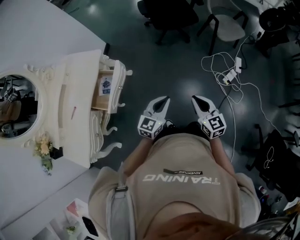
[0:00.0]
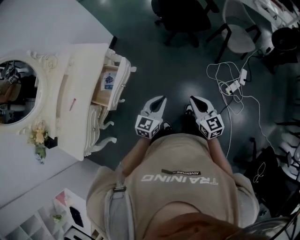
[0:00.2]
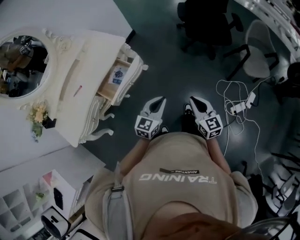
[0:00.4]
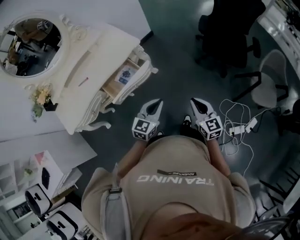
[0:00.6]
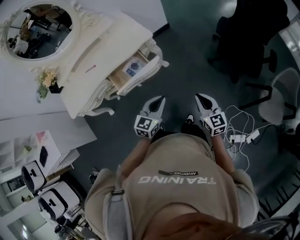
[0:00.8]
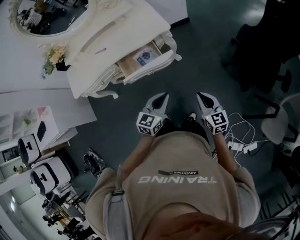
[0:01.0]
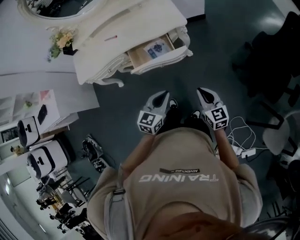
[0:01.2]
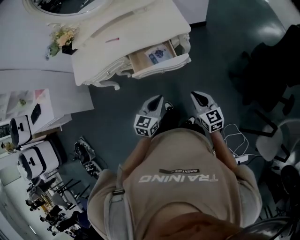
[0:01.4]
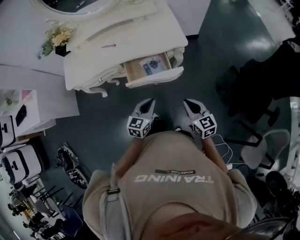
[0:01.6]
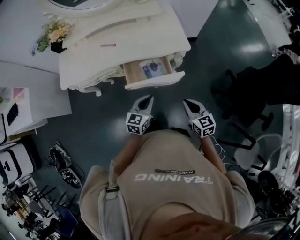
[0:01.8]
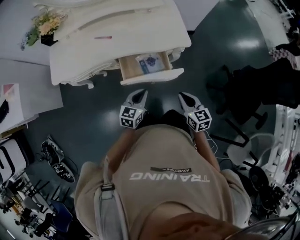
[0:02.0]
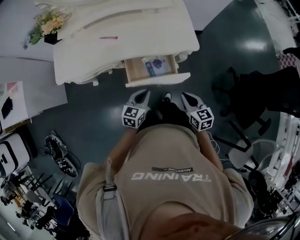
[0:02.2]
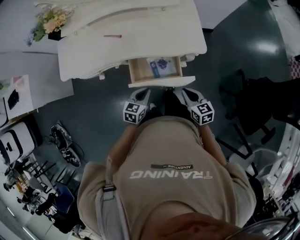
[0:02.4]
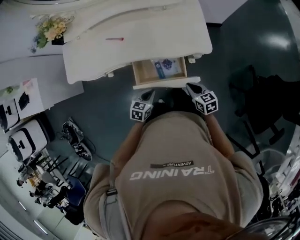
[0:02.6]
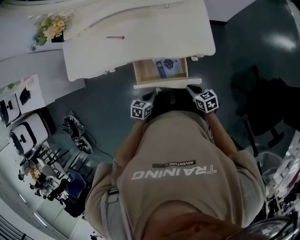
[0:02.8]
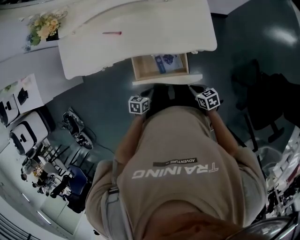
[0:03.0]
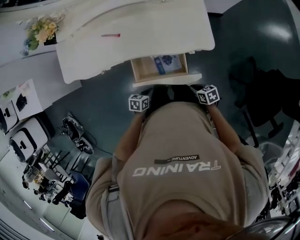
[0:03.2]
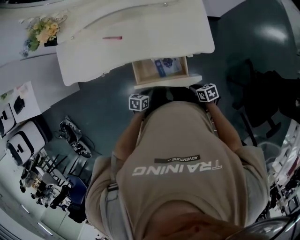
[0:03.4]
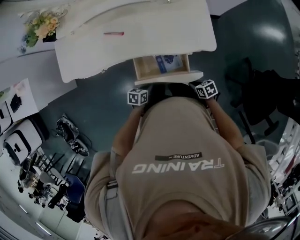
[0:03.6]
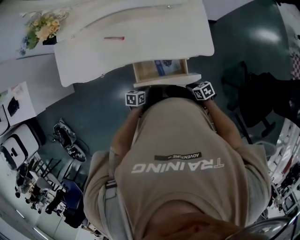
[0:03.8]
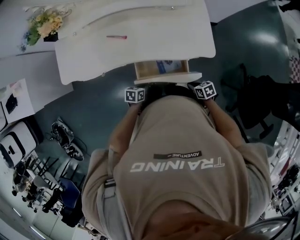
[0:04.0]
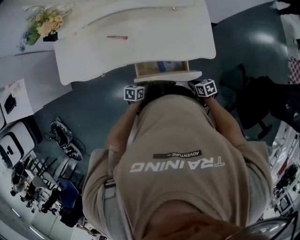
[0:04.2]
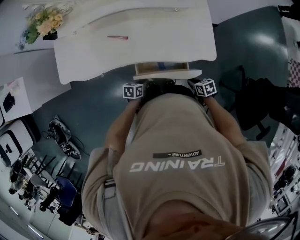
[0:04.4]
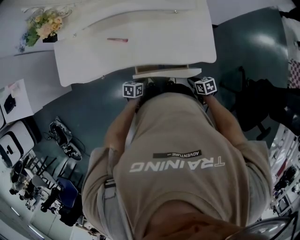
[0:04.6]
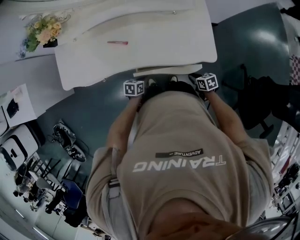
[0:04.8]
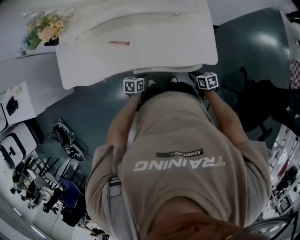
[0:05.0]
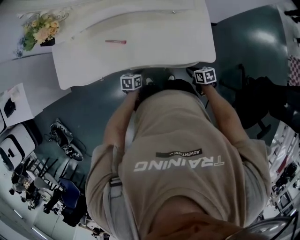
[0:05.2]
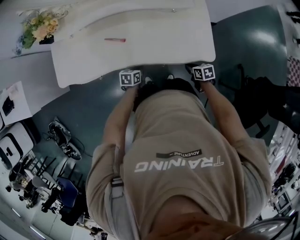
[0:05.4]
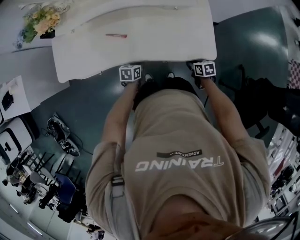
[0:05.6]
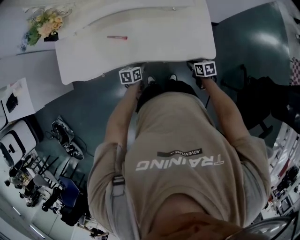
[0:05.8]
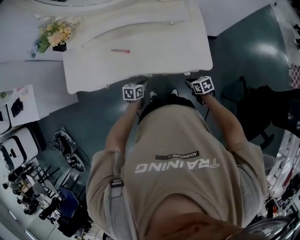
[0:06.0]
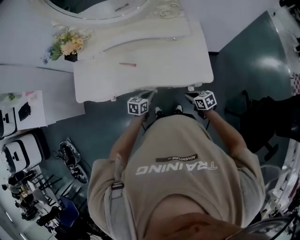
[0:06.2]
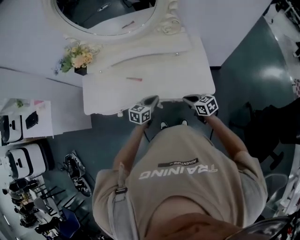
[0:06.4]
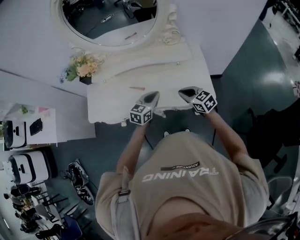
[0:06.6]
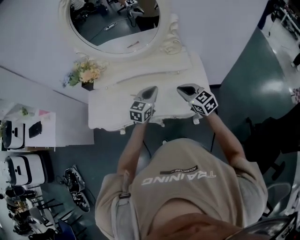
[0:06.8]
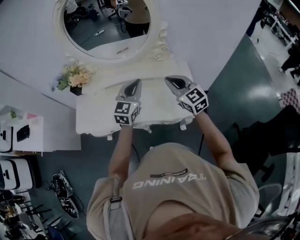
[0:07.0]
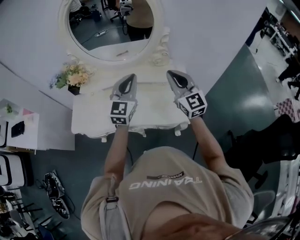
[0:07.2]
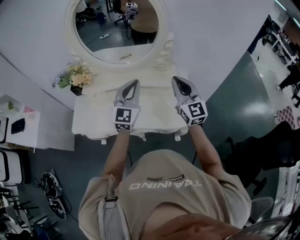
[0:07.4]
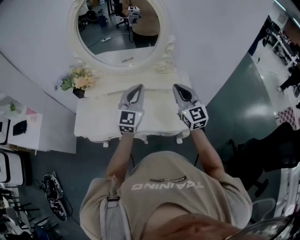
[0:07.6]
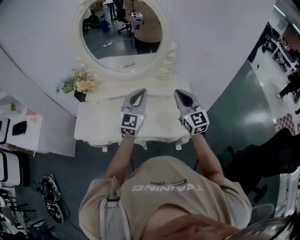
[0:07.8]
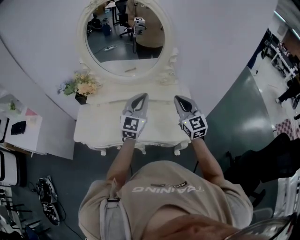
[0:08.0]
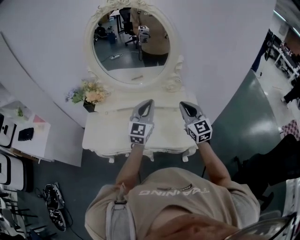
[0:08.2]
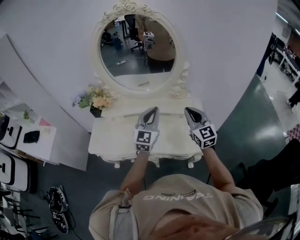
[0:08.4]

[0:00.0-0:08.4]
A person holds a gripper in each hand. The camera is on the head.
0:00.0 to 0:01.4: The right gripper shifts by approximately 35 cm, and rotates about 70 degrees, while the left gripper moves approximately 25 cm, and swivels some 70 degrees.
0:01.4 to 0:02.8: The grippers both shift forward and downward by about 30 cm. The right gripper swivels approximately 40 degrees, while the left gripper changes its angle by roughly 40 degrees.
0:02.8 to 0:04.2: The right gripper goes about 5 cm downward, while the left gripper changes place by some 10 cm.
0:04.2 to 0:05.6: The right gripper moves approximately 15 cm. Meanwhile the left gripper shifts by some 15 cm.
0:05.6 to 0:07.0: The grippers both shift upward by some 50 cm. The left gripper angles its fingers upward, by roughly 40 degrees; the right gripper tips its fingers upward by about 40 degrees.

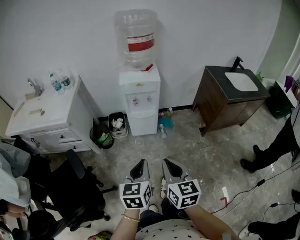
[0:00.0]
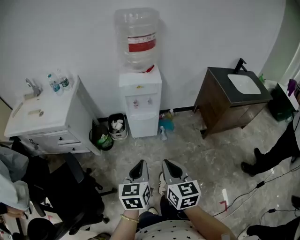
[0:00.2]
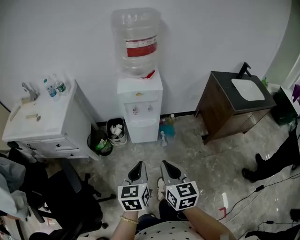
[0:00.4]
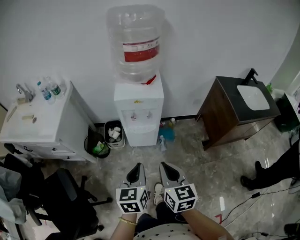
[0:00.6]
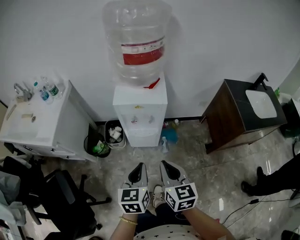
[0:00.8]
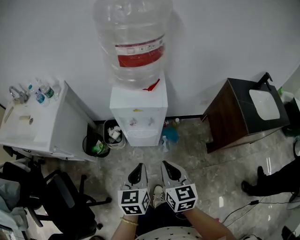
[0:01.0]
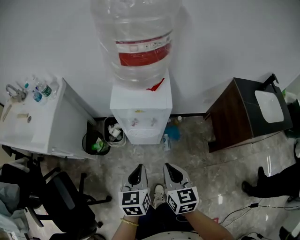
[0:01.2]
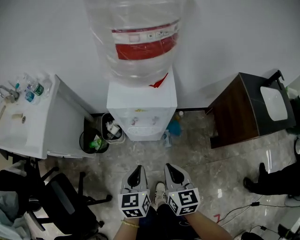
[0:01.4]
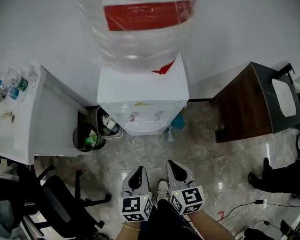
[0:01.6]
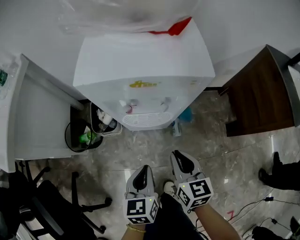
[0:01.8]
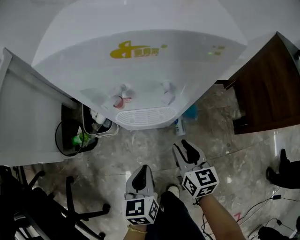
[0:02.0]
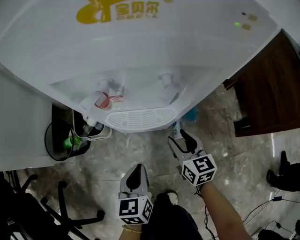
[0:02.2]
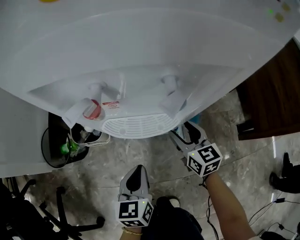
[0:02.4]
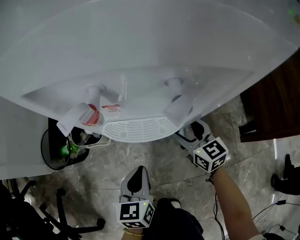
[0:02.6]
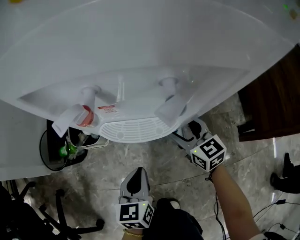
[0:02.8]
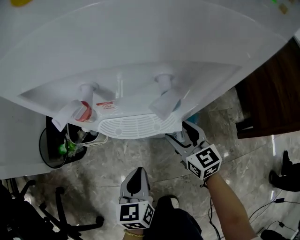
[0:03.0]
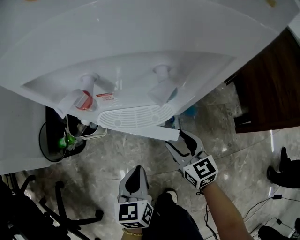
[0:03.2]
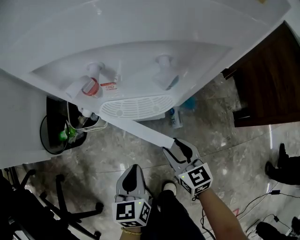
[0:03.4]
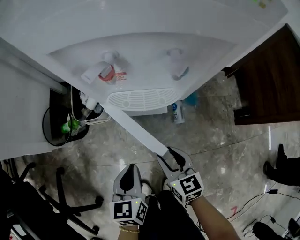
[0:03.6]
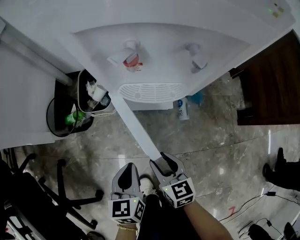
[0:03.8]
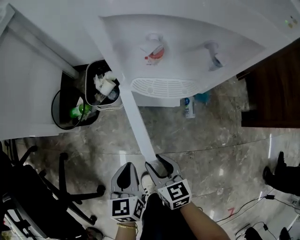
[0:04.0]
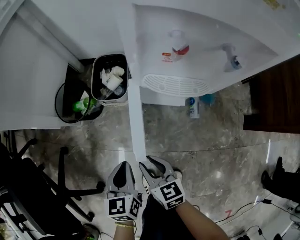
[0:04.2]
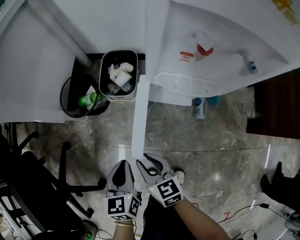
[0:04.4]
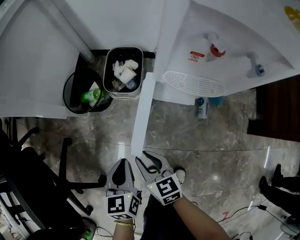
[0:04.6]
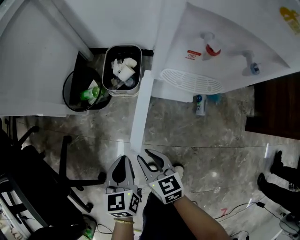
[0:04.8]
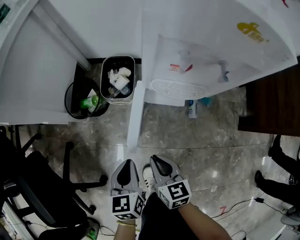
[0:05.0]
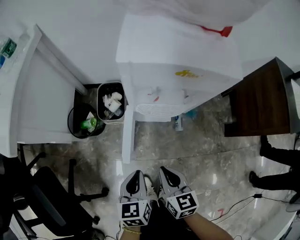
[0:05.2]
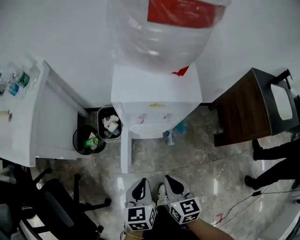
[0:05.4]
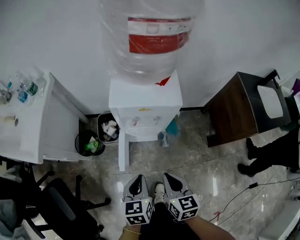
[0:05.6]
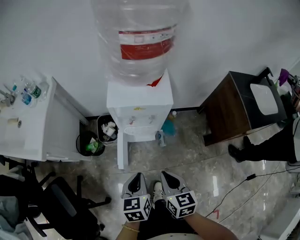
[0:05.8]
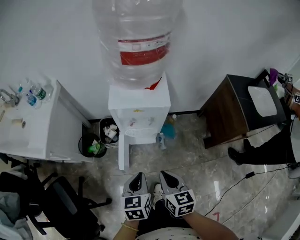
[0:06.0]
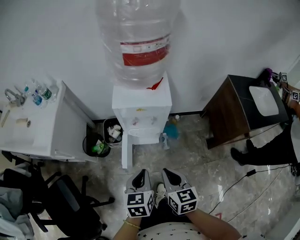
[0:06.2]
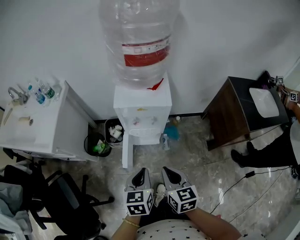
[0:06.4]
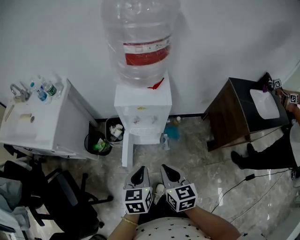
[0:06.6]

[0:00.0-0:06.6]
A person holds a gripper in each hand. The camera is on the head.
0:00.0 to 0:01.6: The grippers both shift forward and downward by some 40 cm.
0:01.6 to 0:03.2: Both grippers travel together downward, some 30 cm. The right gripper opens up.
0:03.2 to 0:05.0: The left gripper goes about 20 cm to the left and upward. Meanwhile the right gripper shifts approximately 25 cm to the left and backward, and closes.
0:05.0 to 0:06.6: The left gripper is displaced upward and to the right by roughly 40 cm. Meanwhile the right gripper goes approximately 40 cm upward.

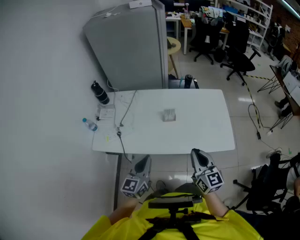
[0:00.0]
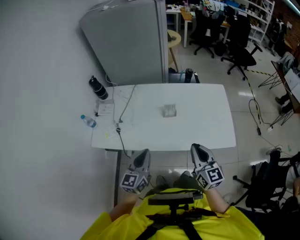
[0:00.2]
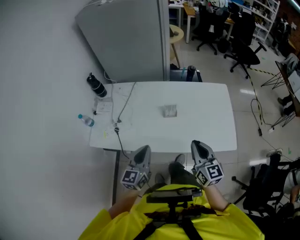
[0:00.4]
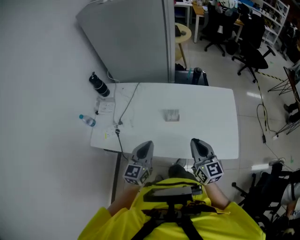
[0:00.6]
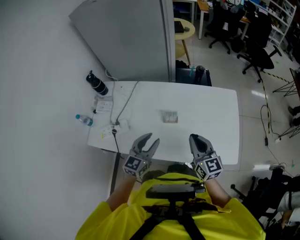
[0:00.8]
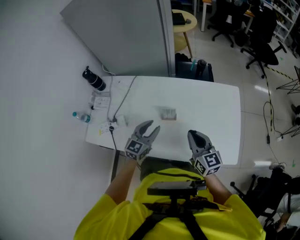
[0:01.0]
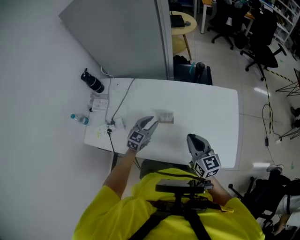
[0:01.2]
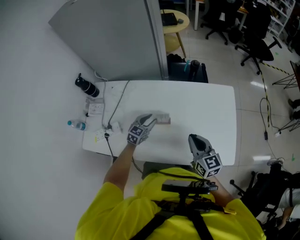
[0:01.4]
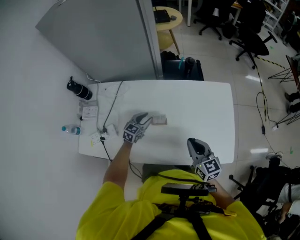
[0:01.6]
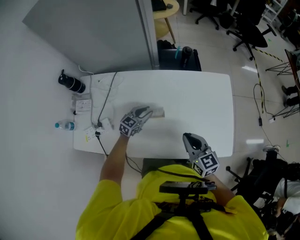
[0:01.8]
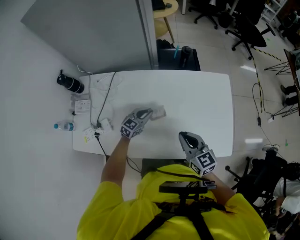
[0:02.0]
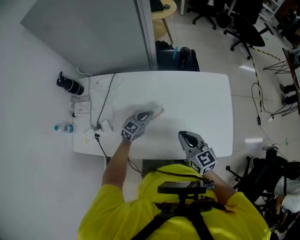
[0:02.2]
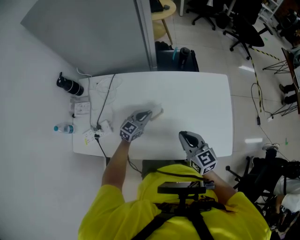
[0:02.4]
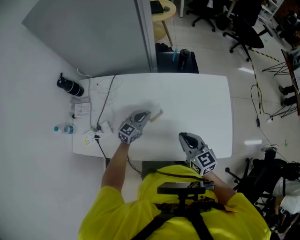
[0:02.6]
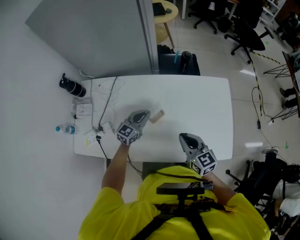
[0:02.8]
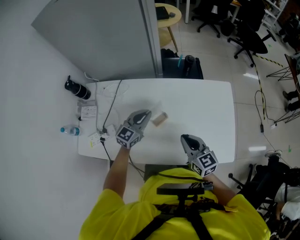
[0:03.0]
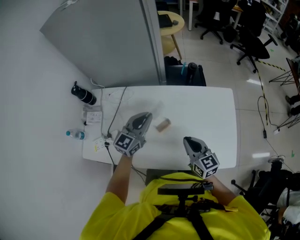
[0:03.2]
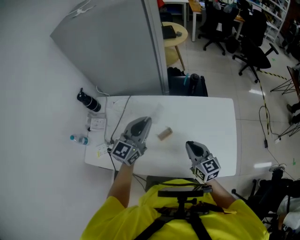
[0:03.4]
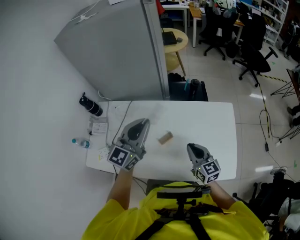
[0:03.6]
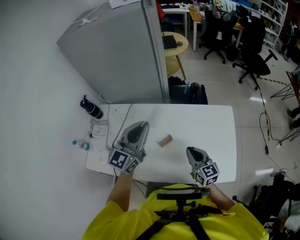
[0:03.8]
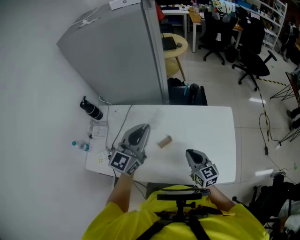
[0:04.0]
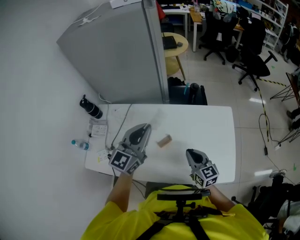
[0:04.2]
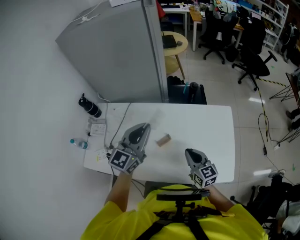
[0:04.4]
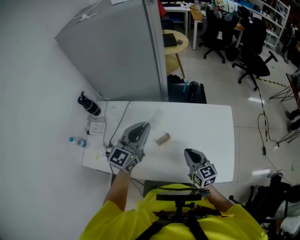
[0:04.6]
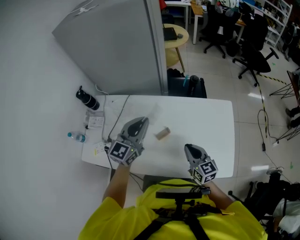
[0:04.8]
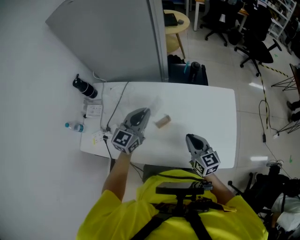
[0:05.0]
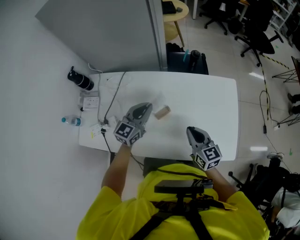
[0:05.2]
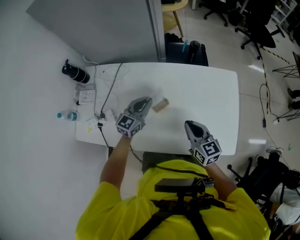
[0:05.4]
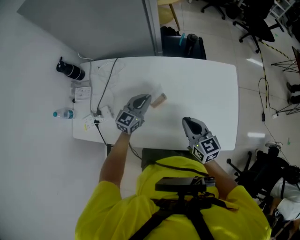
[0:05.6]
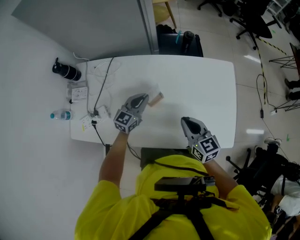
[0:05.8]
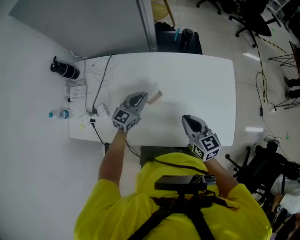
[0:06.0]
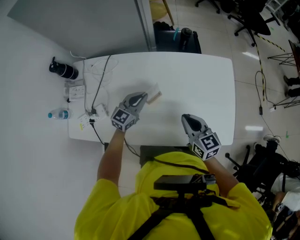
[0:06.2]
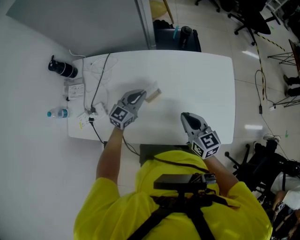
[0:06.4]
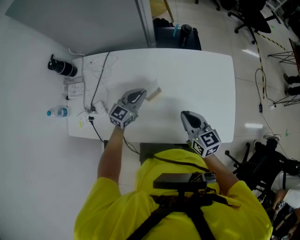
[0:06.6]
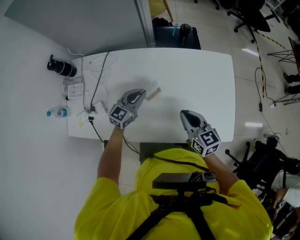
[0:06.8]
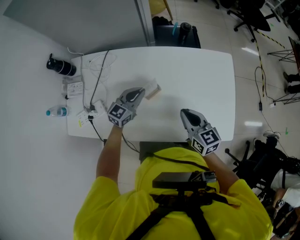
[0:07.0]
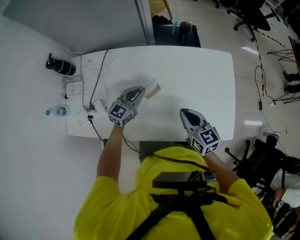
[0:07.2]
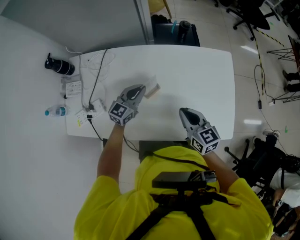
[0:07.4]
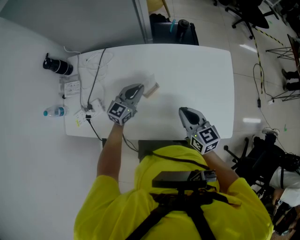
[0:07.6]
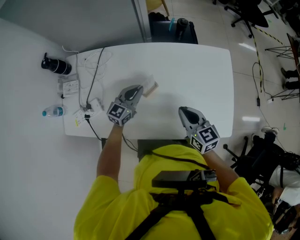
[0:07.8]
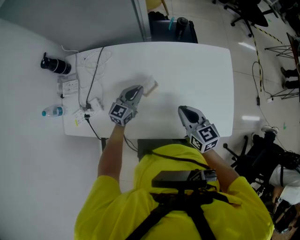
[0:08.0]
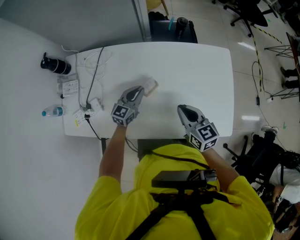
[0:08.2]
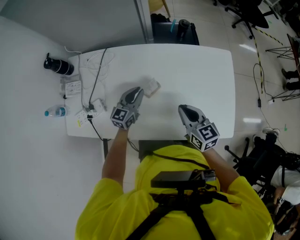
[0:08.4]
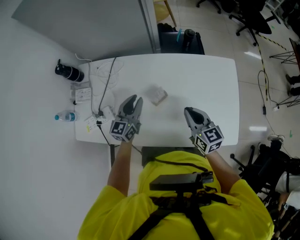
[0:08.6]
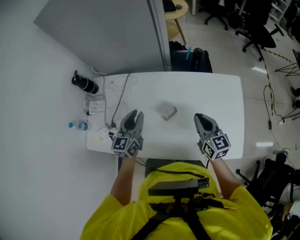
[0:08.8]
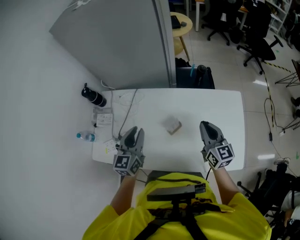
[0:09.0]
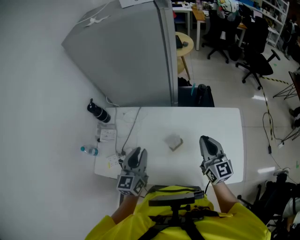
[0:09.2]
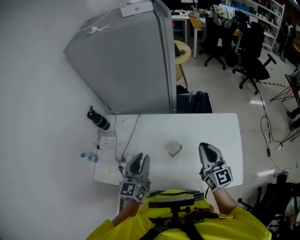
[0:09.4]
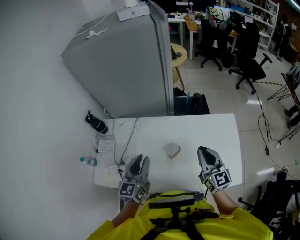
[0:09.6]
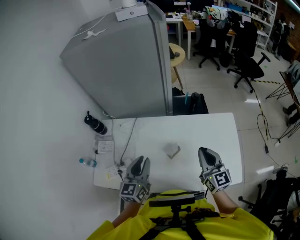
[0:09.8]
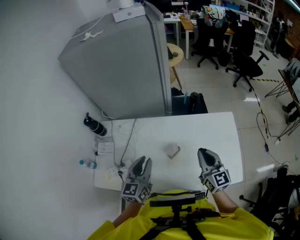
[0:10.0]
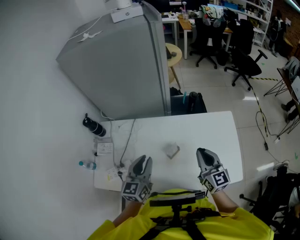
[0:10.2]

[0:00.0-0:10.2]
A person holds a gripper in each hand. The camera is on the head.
0:00.0 to 0:01.4: The right gripper is displaced forward and downward by roughly 25 cm; the left gripper goes about 40 cm forward and downward, changes its angle by roughly 30 degrees, and opens its fingers.
0:01.4 to 0:03.0: The left gripper is displaced upward by roughly 10 cm, and closes up.
0:03.0 to 0:04.4: The left gripper shifts about 20 cm upward.
0:04.4 to 0:05.8: The left gripper moves downward, approximately 25 cm.
0:05.8 to 0:07.2: The grippers make only small movements.
0:07.2 to 0:08.8: The right gripper is displaced upward and forward by about 10 cm. The left gripper is displaced upward and to the left by roughly 15 cm, changes its angle by roughly 30 degrees, and opens up.
0:08.8 to 0:10.2: The grippers both shift upward by roughly 10 cm.
